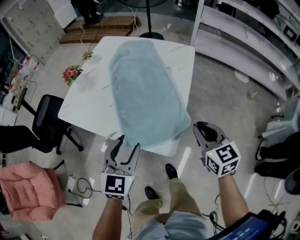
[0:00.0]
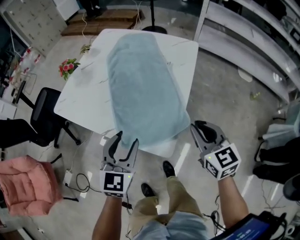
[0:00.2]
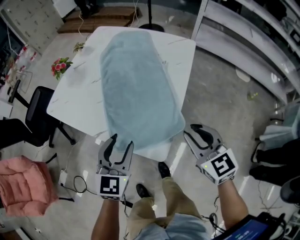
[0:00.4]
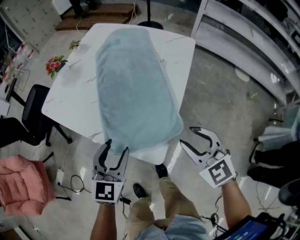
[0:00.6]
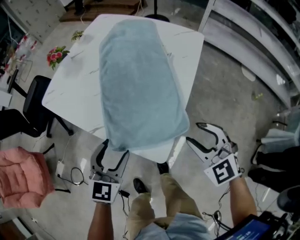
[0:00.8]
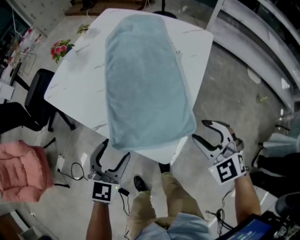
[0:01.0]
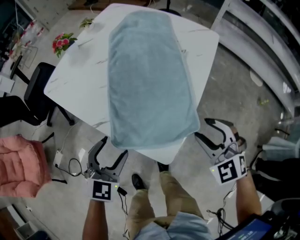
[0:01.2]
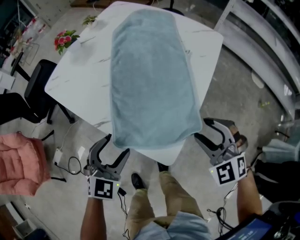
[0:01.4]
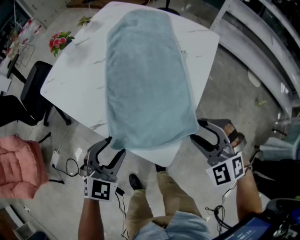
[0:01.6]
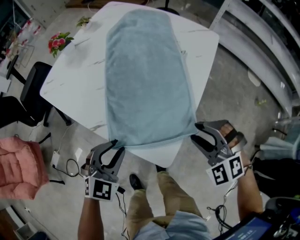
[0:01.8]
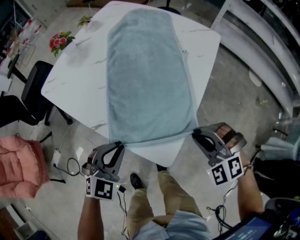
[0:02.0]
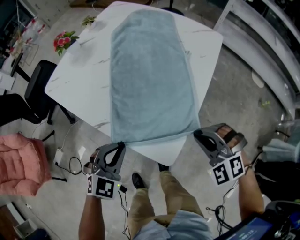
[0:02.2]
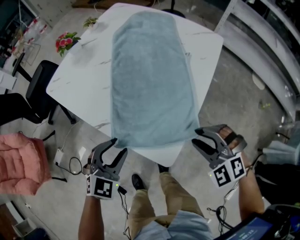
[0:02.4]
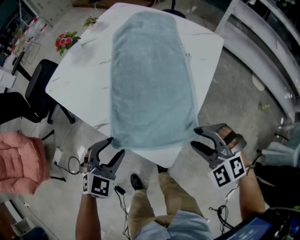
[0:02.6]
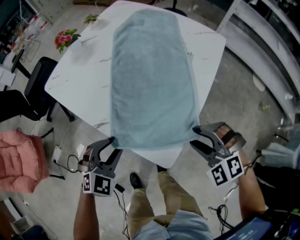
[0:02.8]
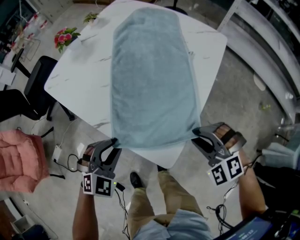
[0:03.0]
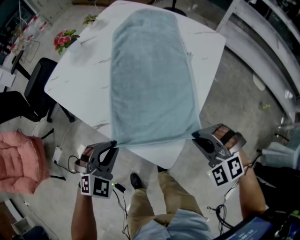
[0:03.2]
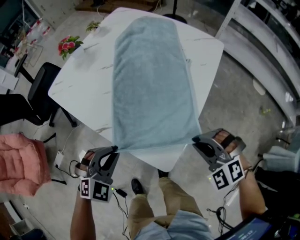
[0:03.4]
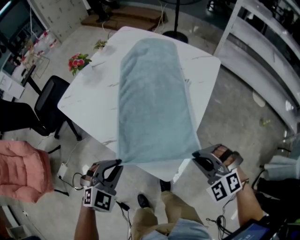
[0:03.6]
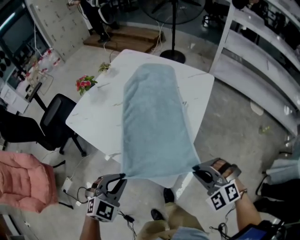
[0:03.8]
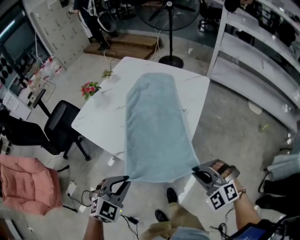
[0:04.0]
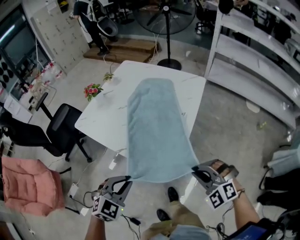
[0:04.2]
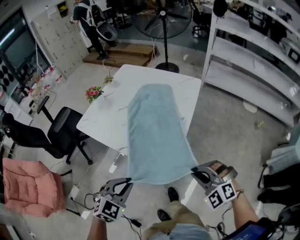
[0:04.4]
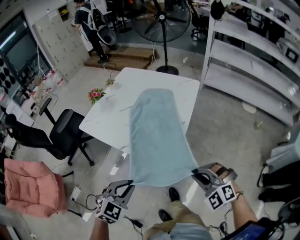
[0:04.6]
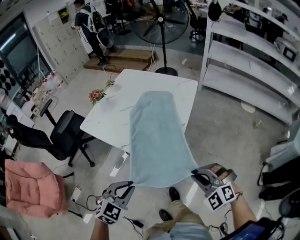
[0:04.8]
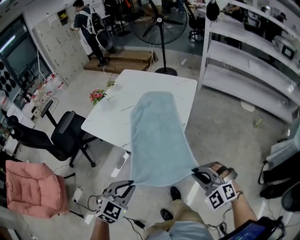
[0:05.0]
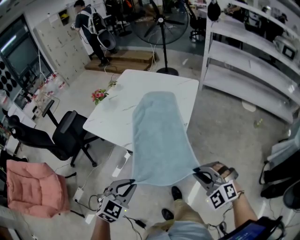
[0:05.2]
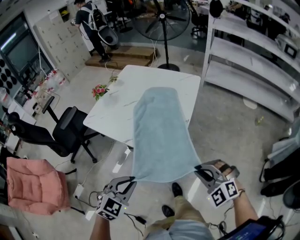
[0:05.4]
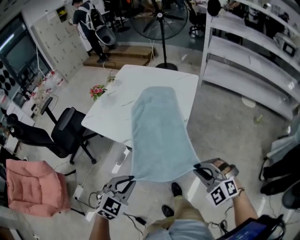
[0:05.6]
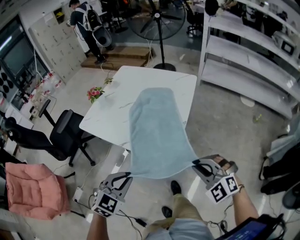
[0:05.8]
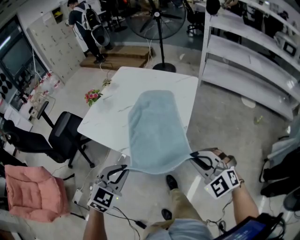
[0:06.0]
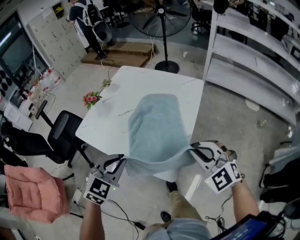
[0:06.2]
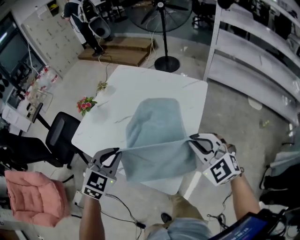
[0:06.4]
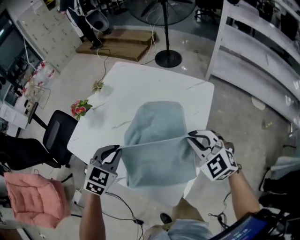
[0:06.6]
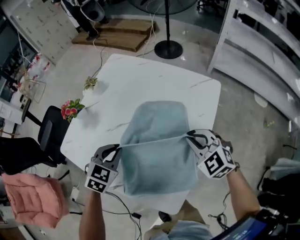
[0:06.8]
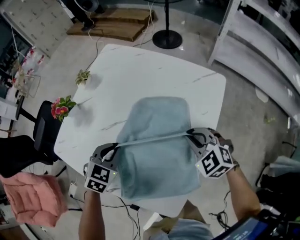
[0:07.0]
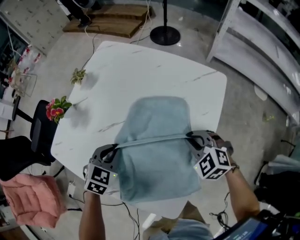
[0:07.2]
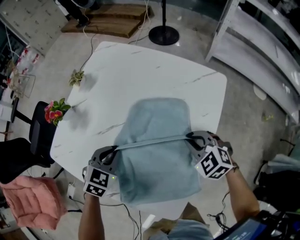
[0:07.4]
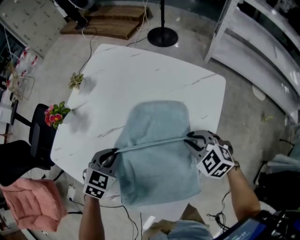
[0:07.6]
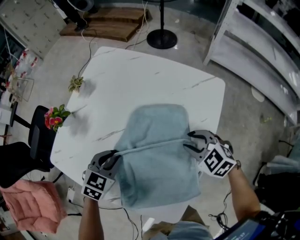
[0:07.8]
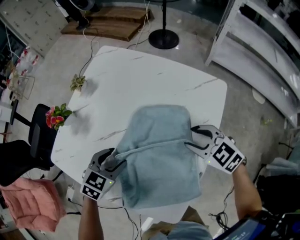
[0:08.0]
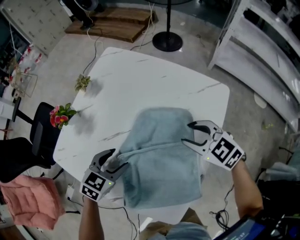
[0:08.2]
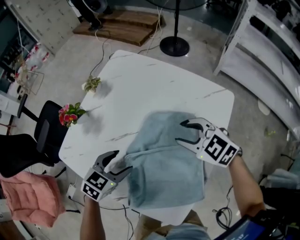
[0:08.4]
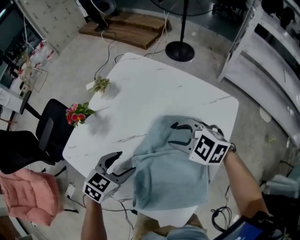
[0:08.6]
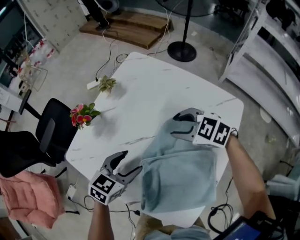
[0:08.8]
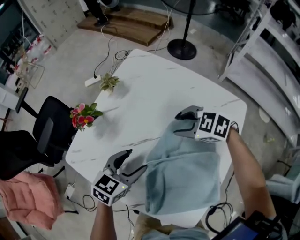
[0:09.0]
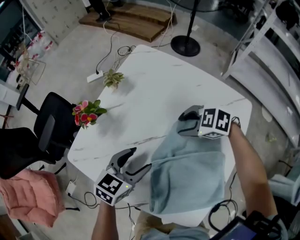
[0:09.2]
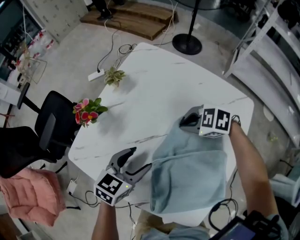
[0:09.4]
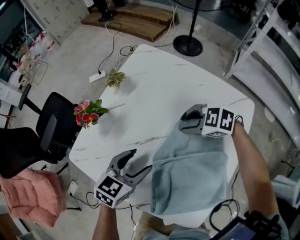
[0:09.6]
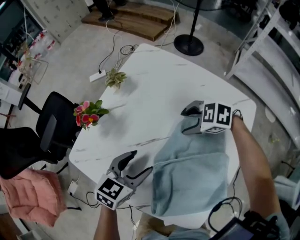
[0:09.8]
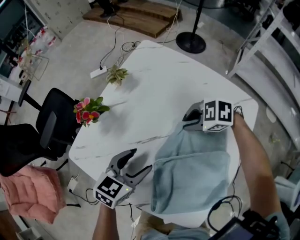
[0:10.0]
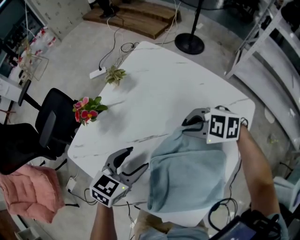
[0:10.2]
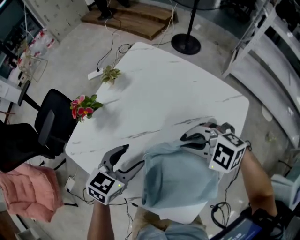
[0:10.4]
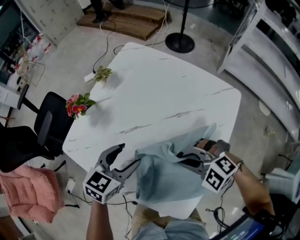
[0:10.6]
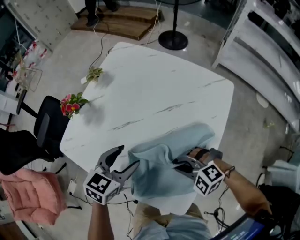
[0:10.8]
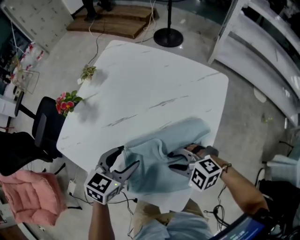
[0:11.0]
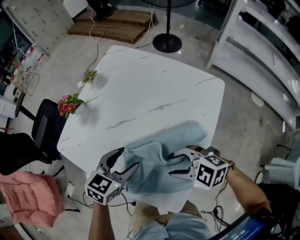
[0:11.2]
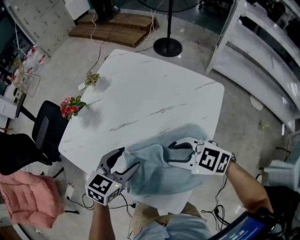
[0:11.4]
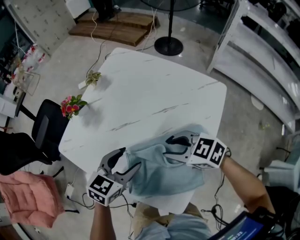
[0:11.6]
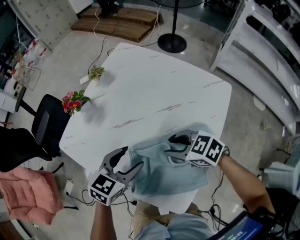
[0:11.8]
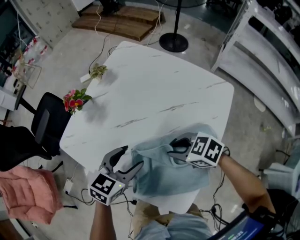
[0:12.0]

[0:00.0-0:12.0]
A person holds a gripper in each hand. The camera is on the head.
0:00.0 to 0:01.6: The right gripper goes approximately 5 cm downward, rotates around the line of its fingers by about 60 degrees, counterclockwise from behind, and opens. The left gripper goes about 10 cm downward, and turns by approximately 20 degrees.
0:01.6 to 0:03.0: The right gripper closes up. The left gripper closes its fingers.
0:03.0 to 0:04.4: The right gripper moves backward and upward, some 15 cm, and closes its fingers; the left gripper moves upward and backward, about 15 cm.
0:04.4 to 0:06.0: The left gripper heads forward and upward, covering some 10 cm; the right gripper travels upward by about 5 cm.
0:06.0 to 0:07.6: The two grippers go some 35 cm forward and downward. The right gripper swivels some 30 degrees; the left gripper changes its angle by some 20 degrees.
0:07.6 to 0:09.0: The right gripper travels to the left and forward by about 20 cm, changes its angle by approximately 30 degrees, and opens; the left gripper shifts by roughly 5 cm, changes its angle by roughly 20 degrees, and opens its fingers.
0:09.0 to 0:10.4: The right gripper ends up approximately 10 cm from where it was, swivels roughly 20 degrees, and closes its fingers.
0:10.4 to 0:12.0: The left gripper changes place by about 5 cm. The right gripper moves up and down over about 10 cm, changing direction 2 times, and rolls clockwise, seen from behind, by approximately 40 degrees.

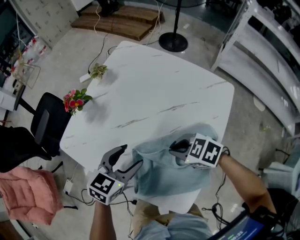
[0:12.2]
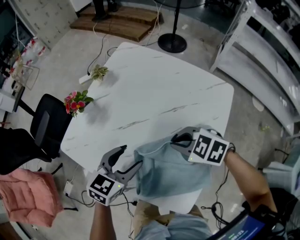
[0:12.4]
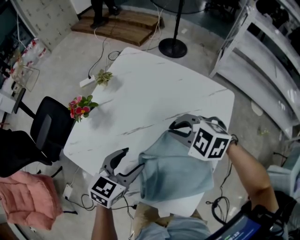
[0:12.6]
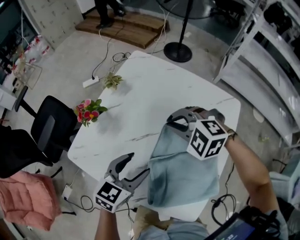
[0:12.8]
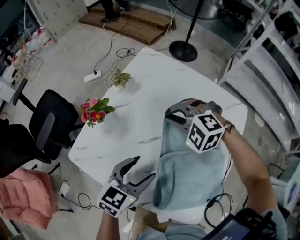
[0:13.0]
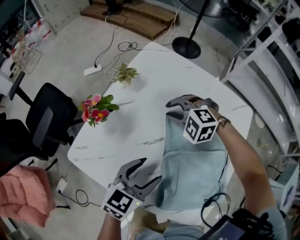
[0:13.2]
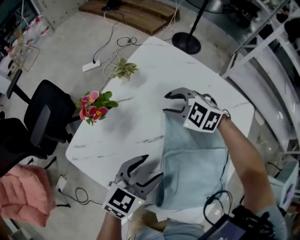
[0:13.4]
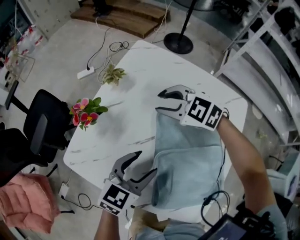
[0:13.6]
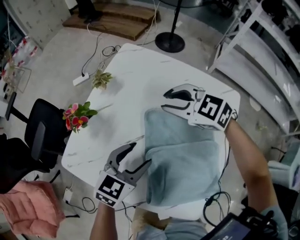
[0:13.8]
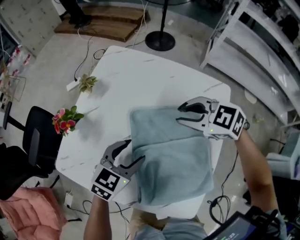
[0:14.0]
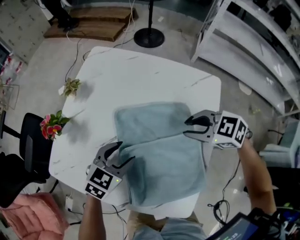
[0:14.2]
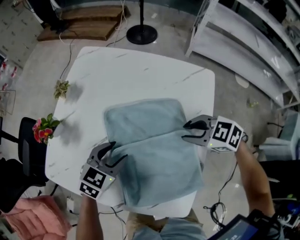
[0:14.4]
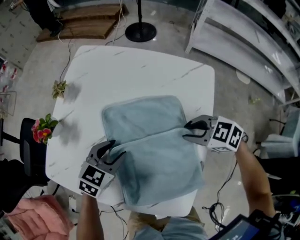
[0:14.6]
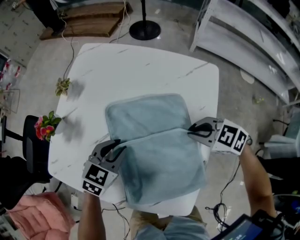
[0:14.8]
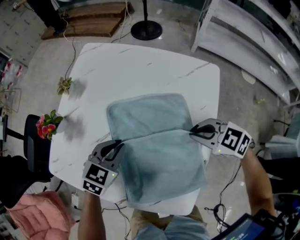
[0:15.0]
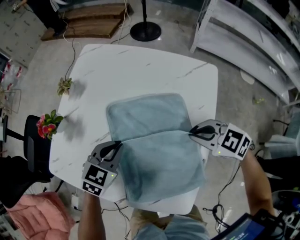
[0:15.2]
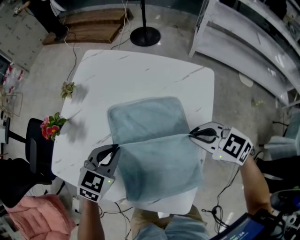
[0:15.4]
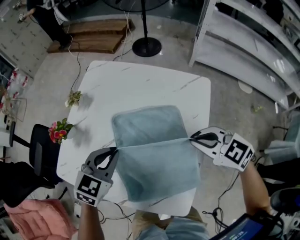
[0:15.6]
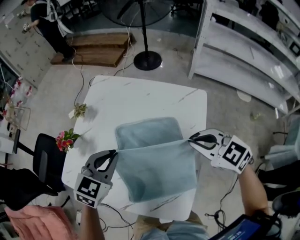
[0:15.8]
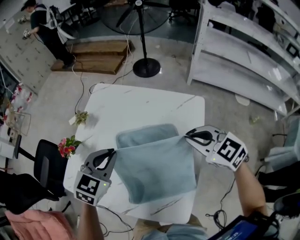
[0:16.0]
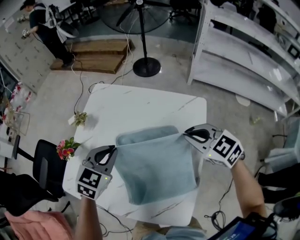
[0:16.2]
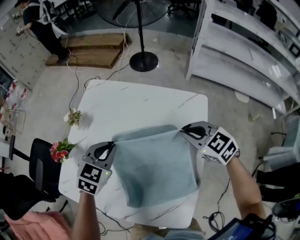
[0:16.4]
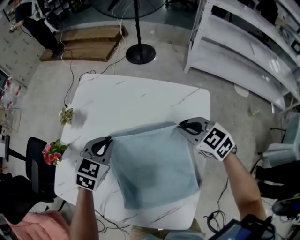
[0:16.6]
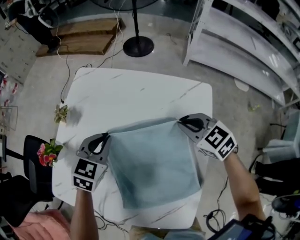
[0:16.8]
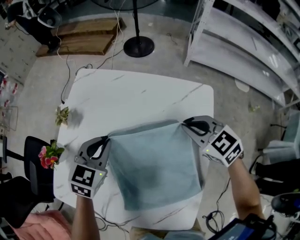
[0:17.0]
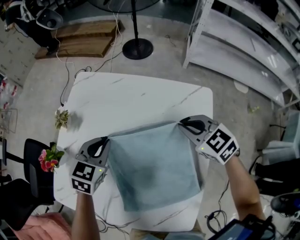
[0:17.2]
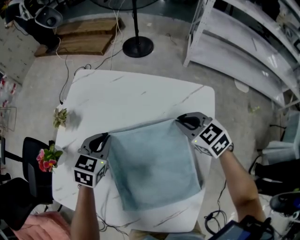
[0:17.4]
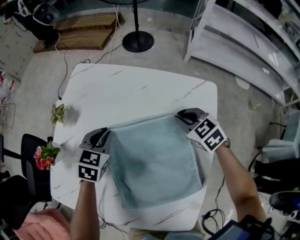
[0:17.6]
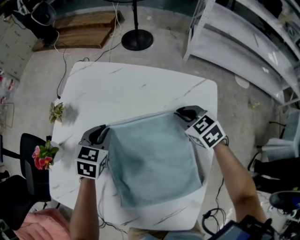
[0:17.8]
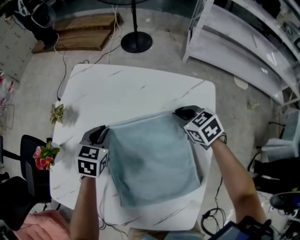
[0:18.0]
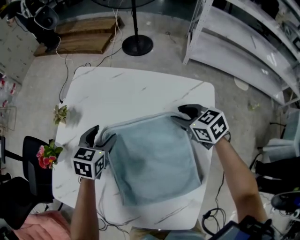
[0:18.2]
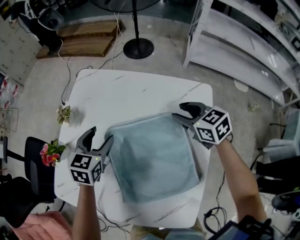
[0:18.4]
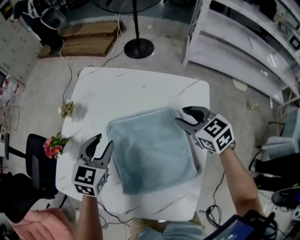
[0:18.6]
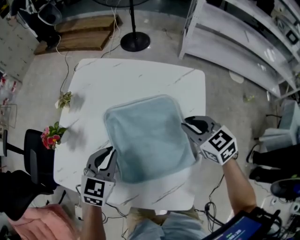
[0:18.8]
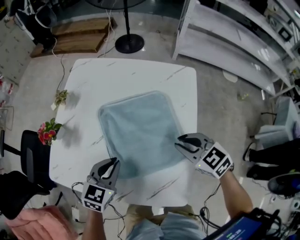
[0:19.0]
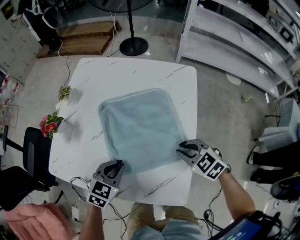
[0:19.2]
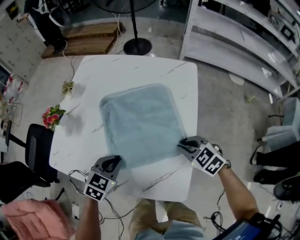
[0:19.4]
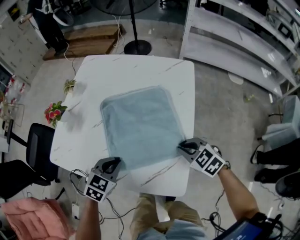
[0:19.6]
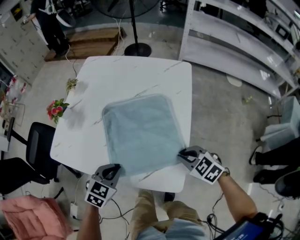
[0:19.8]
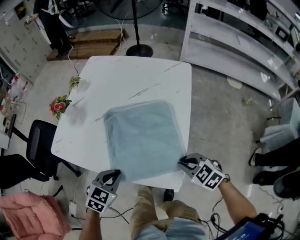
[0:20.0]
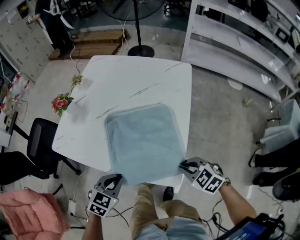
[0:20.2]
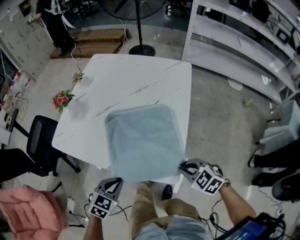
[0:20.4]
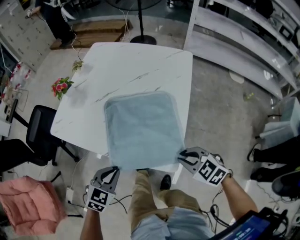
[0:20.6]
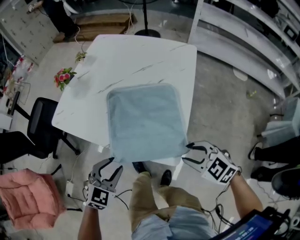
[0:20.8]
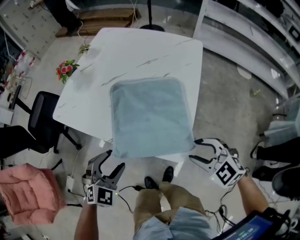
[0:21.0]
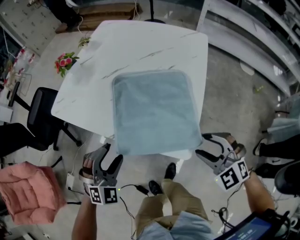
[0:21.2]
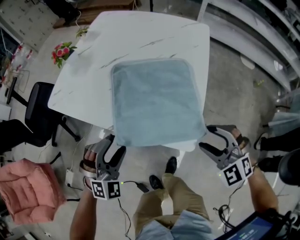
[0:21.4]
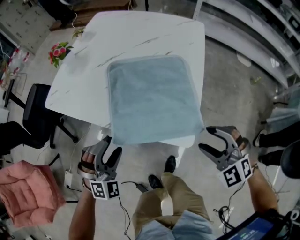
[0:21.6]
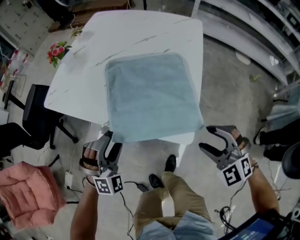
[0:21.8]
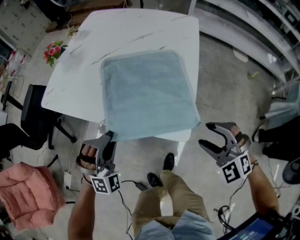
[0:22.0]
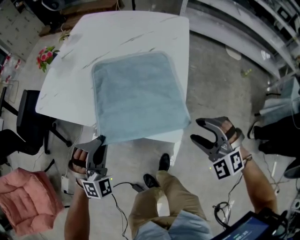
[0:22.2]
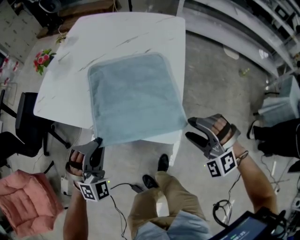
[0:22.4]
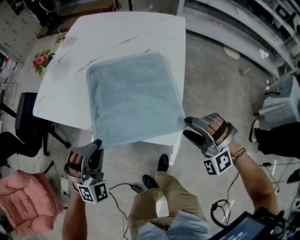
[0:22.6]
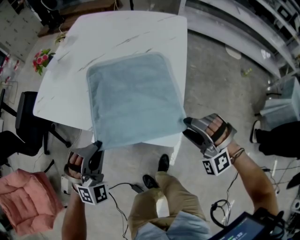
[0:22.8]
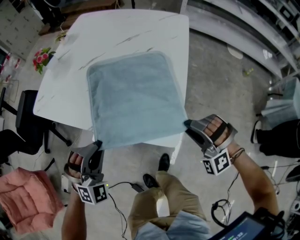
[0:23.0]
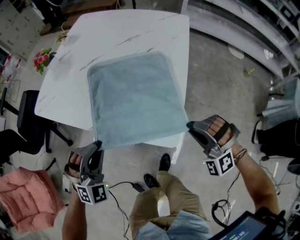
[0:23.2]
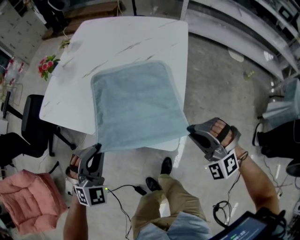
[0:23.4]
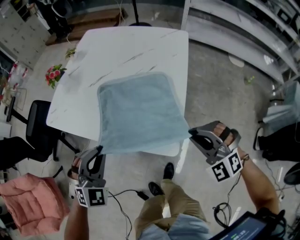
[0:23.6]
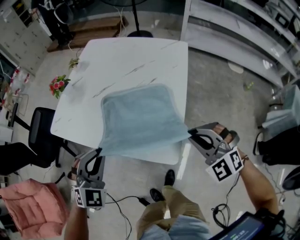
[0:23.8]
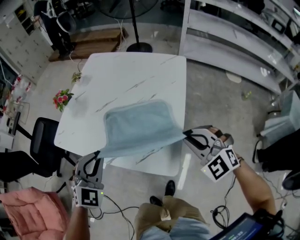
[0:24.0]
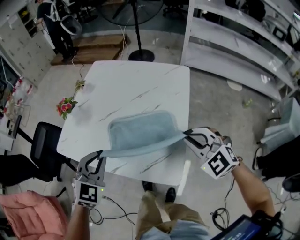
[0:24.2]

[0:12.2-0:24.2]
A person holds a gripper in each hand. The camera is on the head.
0:12.2 to 0:13.8: The right gripper swings up and down, about 10 cm each way, with 2 reversals, turns by roughly 30 degrees, and opens its fingers; the left gripper ends up roughly 5 cm from where it was.
0:13.8 to 0:15.2: The right gripper travels backward and to the right by about 25 cm, and closes, while the left gripper travels downward by roughly 5 cm, and closes.
0:15.2 to 0:16.6: Both grippers travel together forward, some 10 cm. The left gripper travels upward and back again, approximately 15 cm each way. Meanwhile the right gripper goes upward and returns, about 15 cm each way, and rotates roughly 20 degrees.
0:16.6 to 0:18.2: The left gripper travels downward by about 5 cm, and opens up. Meanwhile the right gripper moves forward, roughly 5 cm, and opens its fingers.
0:18.2 to 0:19.8: The two grippers go some 35 cm backward. The right gripper closes. Meanwhile the left gripper closes up.
0:19.8 to 0:21.2: The left gripper travels backward by approximately 10 cm, turns by approximately 40 degrees, and opens its fingers. The right gripper heads backward and upward, covering approximately 10 cm, turns by roughly 40 degrees, and opens its fingers.
0:21.2 to 0:22.6: The left gripper closes, while the right gripper shifts by roughly 5 cm, and changes its angle by approximately 30 degrees.
0:22.6 to 0:24.2: The grippers both shift upward and forward by about 20 cm. The right gripper changes its angle by some 40 degrees, and closes its fingers; the left gripper turns by some 30 degrees.
